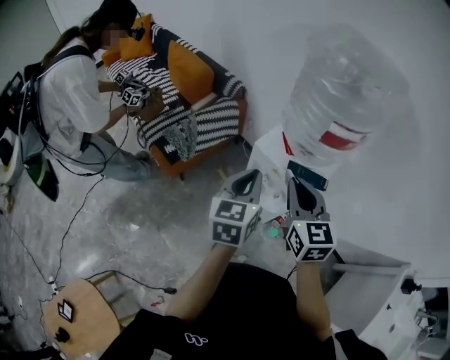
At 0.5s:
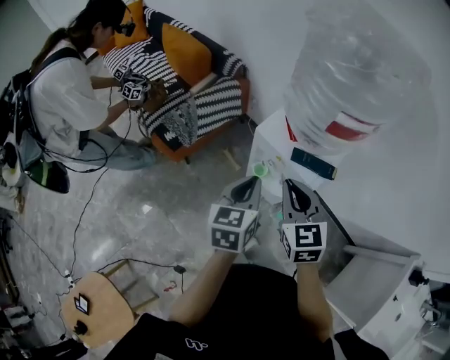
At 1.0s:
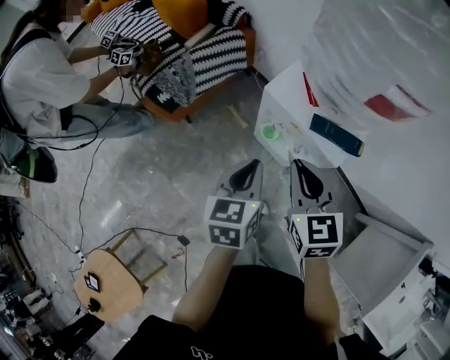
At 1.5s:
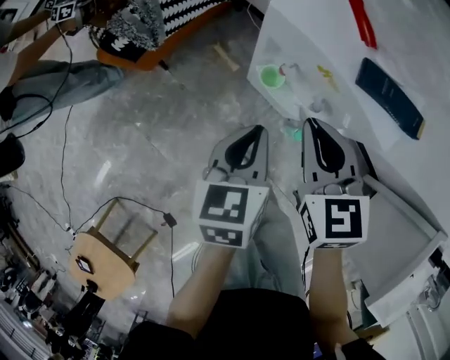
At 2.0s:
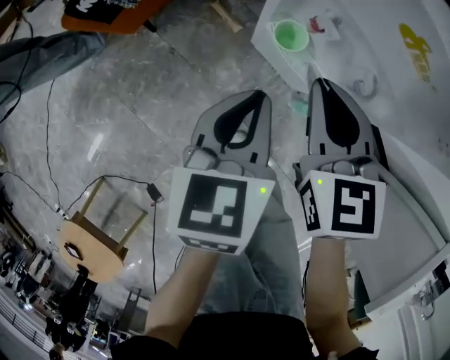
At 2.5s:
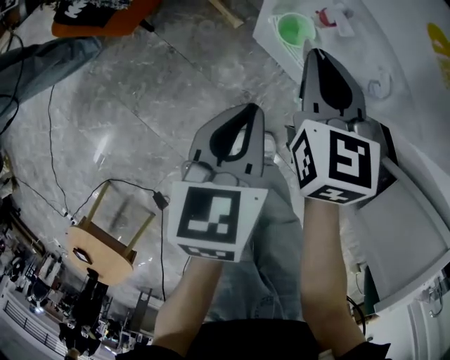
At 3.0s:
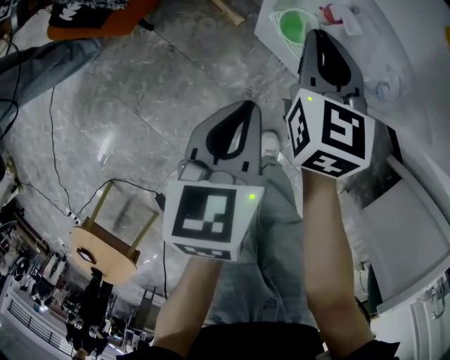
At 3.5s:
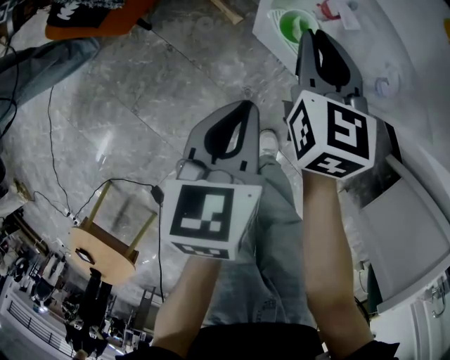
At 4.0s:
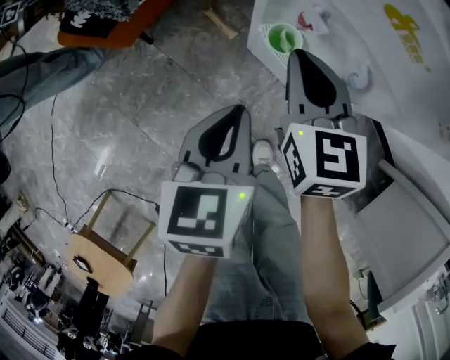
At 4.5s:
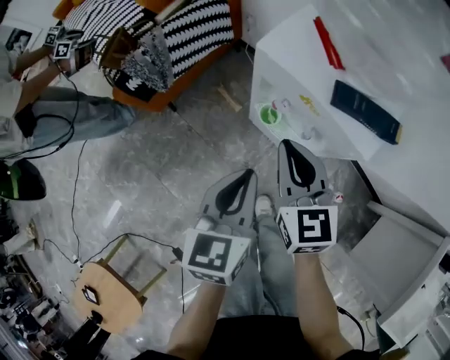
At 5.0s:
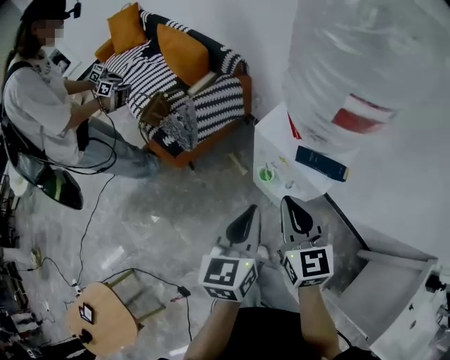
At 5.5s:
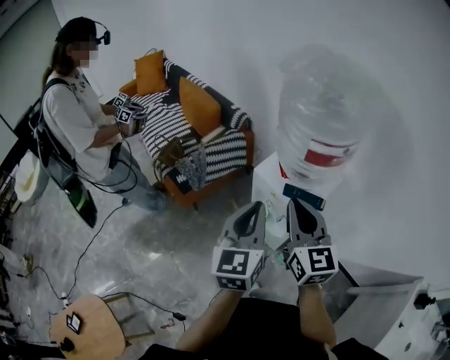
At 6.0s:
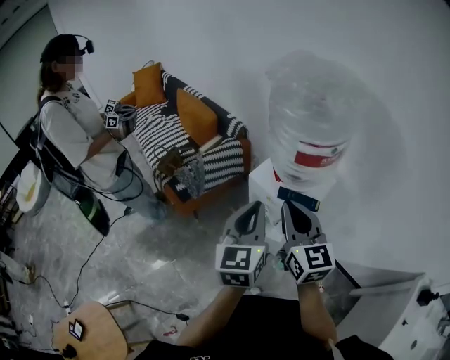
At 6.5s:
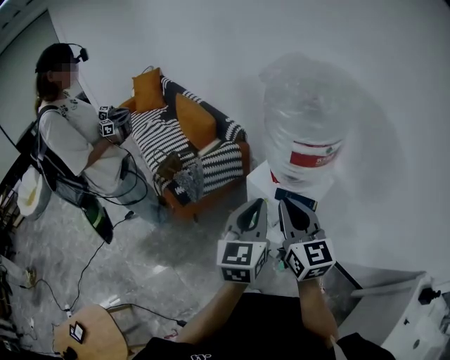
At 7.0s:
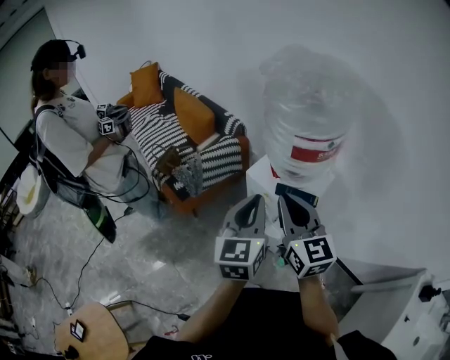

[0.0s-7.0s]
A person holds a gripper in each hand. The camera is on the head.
0.0s to 2.0s: The grippers both shift downward by roughly 35 cm. The left gripper changes its angle by about 20 degrees.
2.0s to 3.5s: The left gripper is displaced downward by about 5 cm; the right gripper goes some 10 cm downward and forward.
3.5s to 5.0s: The right gripper goes some 40 cm upward and backward, and swivels about 20 degrees. Meanwhile the left gripper travels upward by about 35 cm, and rotates about 30 degrees.
5.0s to 7.0s: The two grippers go some 15 cm upward.

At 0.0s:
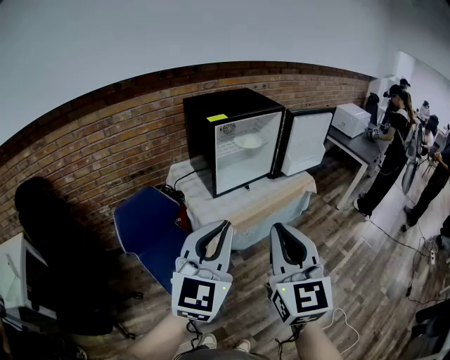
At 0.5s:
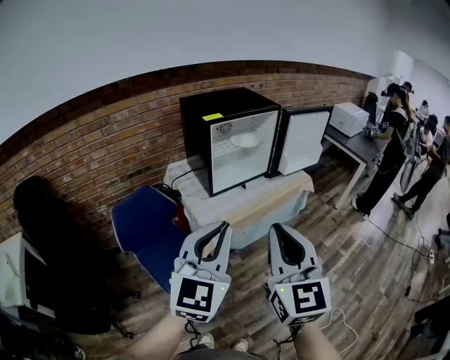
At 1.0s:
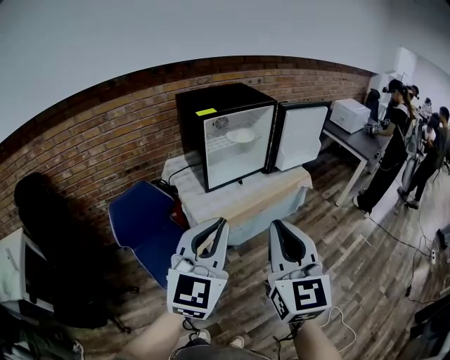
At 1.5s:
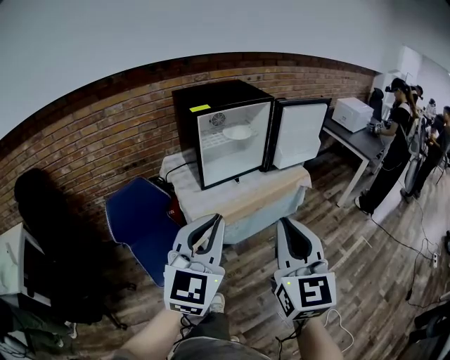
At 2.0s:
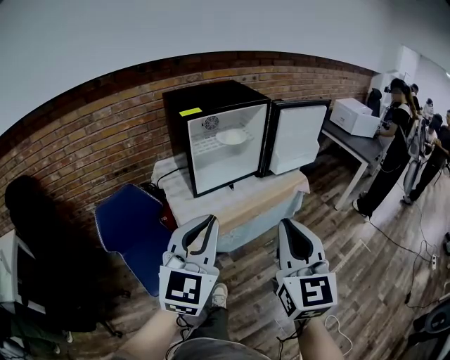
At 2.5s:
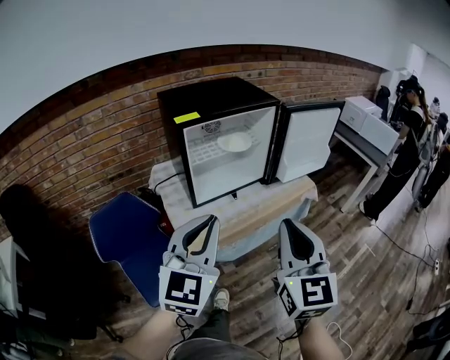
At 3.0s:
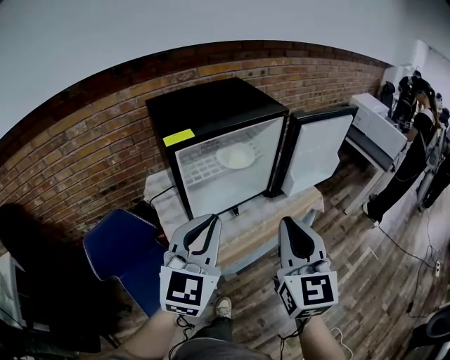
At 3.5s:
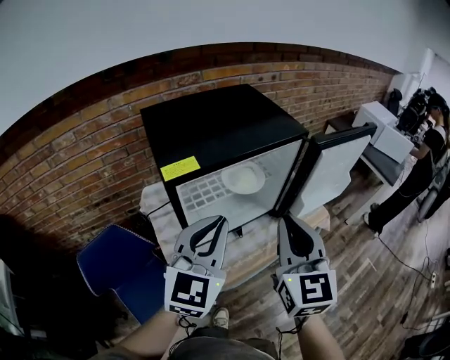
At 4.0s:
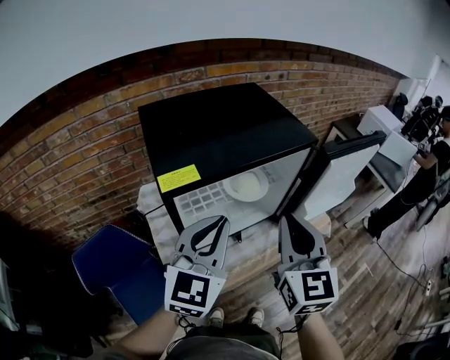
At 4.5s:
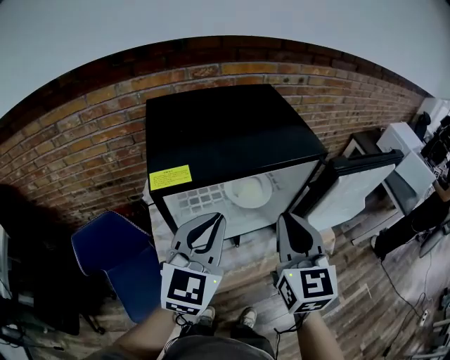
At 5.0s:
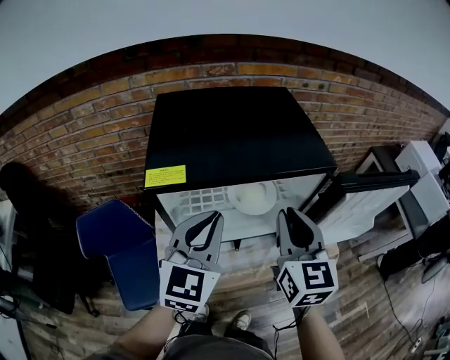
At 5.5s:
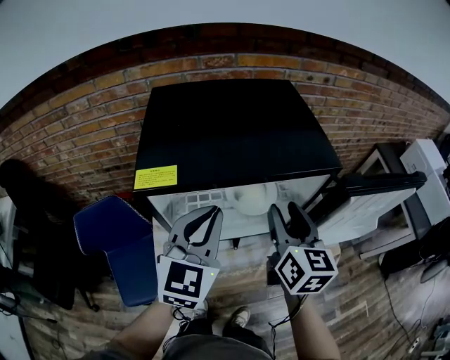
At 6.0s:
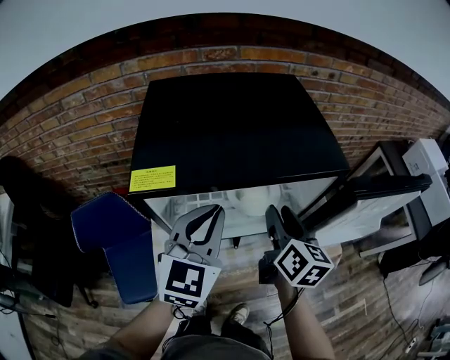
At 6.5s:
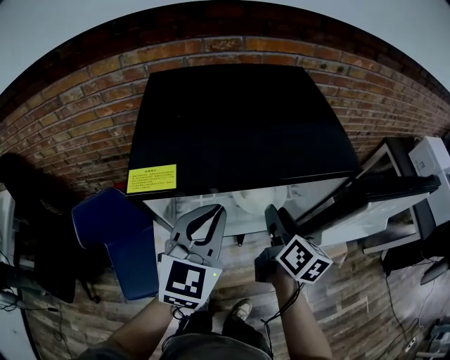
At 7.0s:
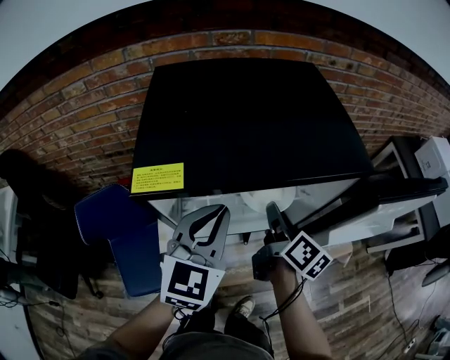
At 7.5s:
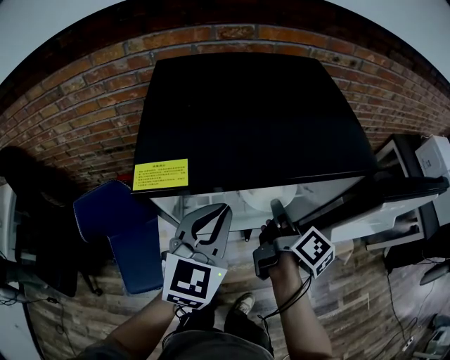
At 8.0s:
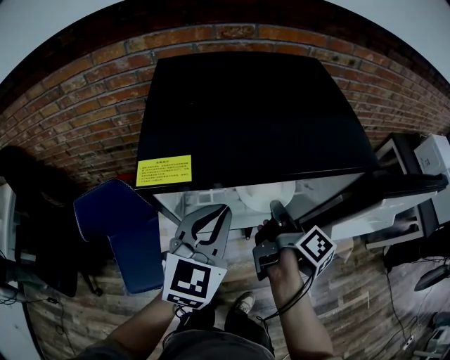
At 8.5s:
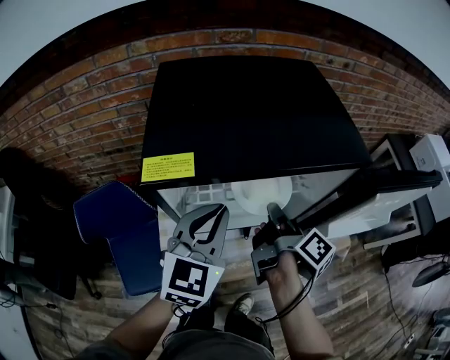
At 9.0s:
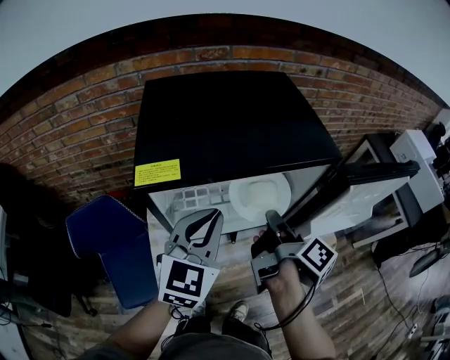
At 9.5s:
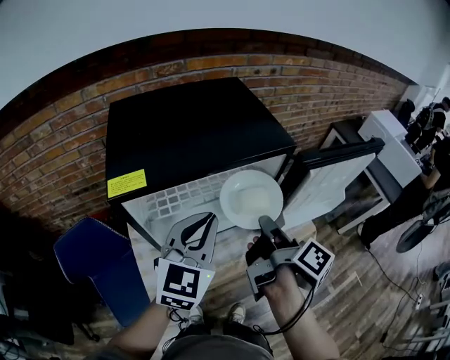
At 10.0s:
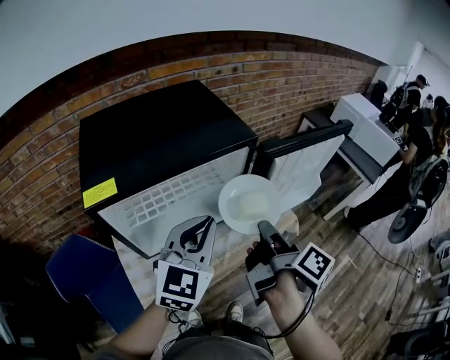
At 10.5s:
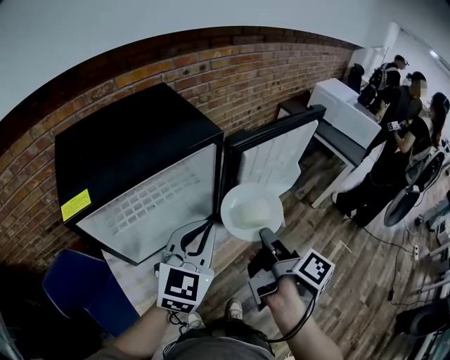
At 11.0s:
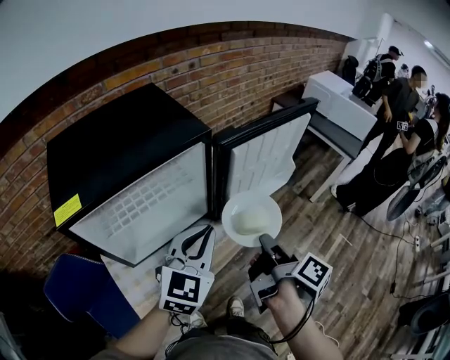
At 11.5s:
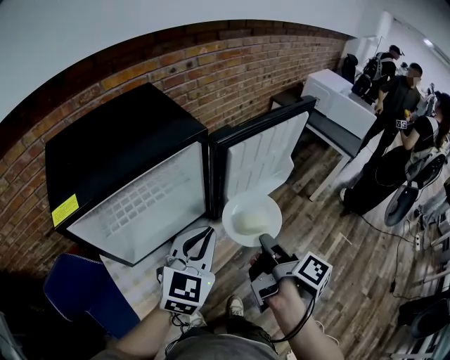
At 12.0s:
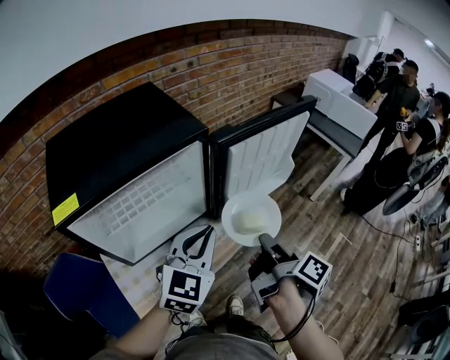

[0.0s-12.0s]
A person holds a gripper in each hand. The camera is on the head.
0.0s to 2.0s: The right gripper moves to the right and forward, about 15 cm. Meanwhile the left gripper goes approximately 10 cm forward and to the right.
2.0s to 4.0s: Both grippers move forward, roughly 40 cm.
4.0s to 6.0s: The right gripper heads forward and downward, covering about 20 cm, changes its angle by some 40 degrees, and opens up; the left gripper travels forward by roughly 10 cm.
6.0s to 8.0s: The right gripper shifts some 5 cm downward, rotates around the line of its fingers by roughly 50 degrees, clockwise from behind, and closes its fingers.
8.0s to 10.0s: The right gripper shifts some 20 cm to the right, backward and upward. Meanwhile the left gripper shifts about 15 cm to the right, and rotates approximately 20 degrees.
10.0s to 12.0s: The left gripper shifts approximately 10 cm to the right; the right gripper heads to the right and downward, covering roughly 10 cm.

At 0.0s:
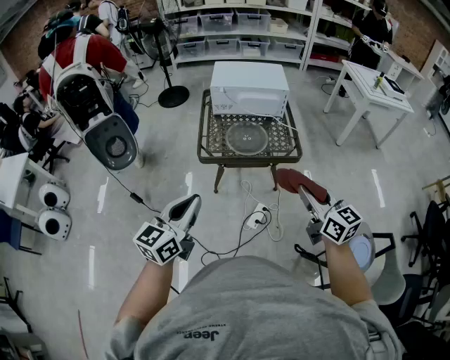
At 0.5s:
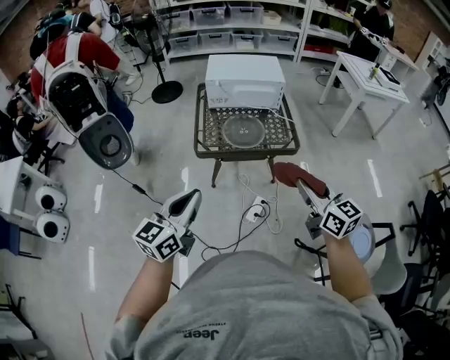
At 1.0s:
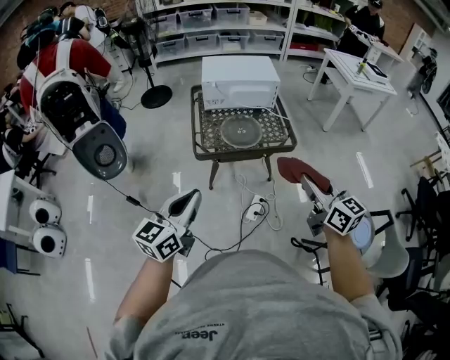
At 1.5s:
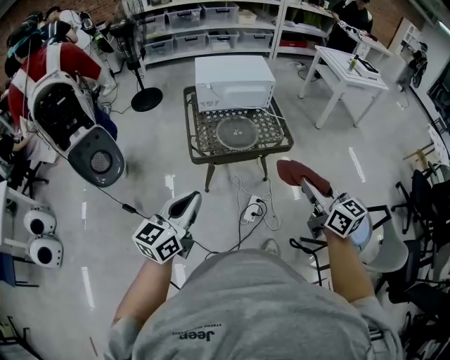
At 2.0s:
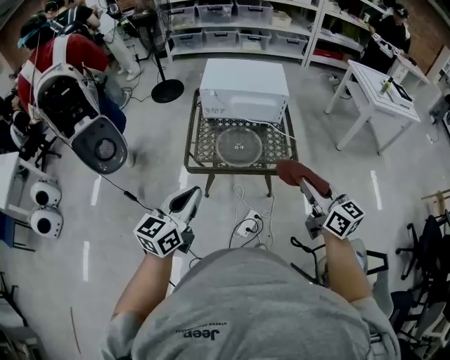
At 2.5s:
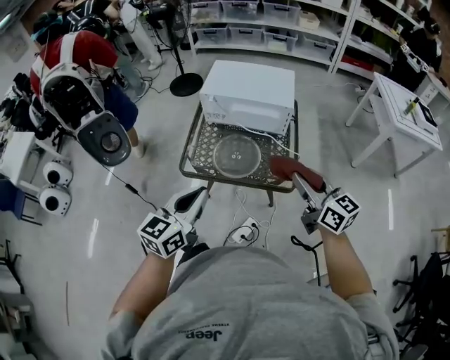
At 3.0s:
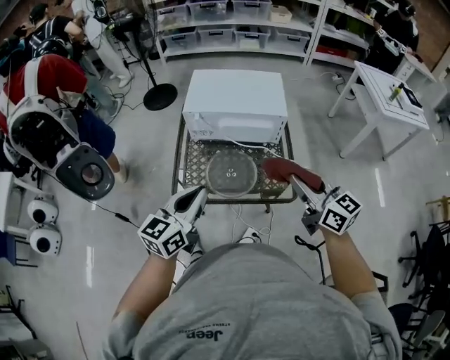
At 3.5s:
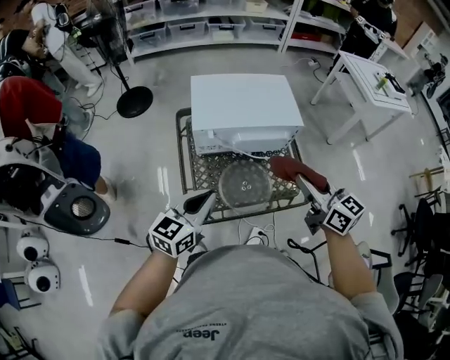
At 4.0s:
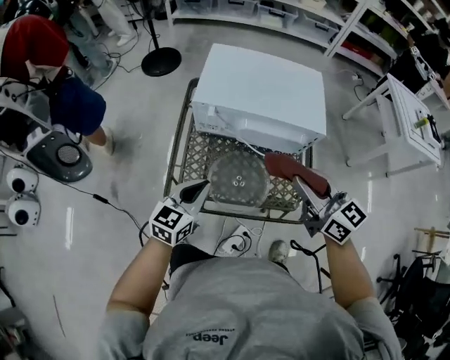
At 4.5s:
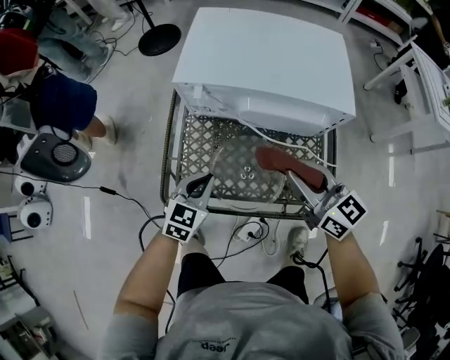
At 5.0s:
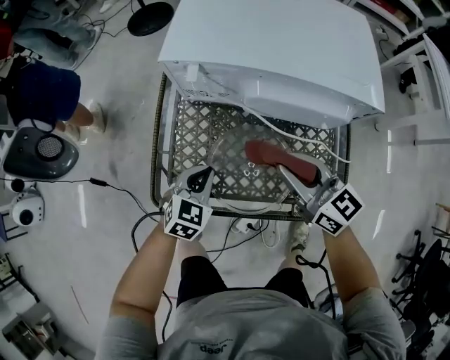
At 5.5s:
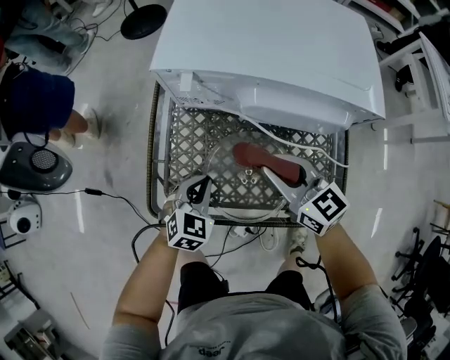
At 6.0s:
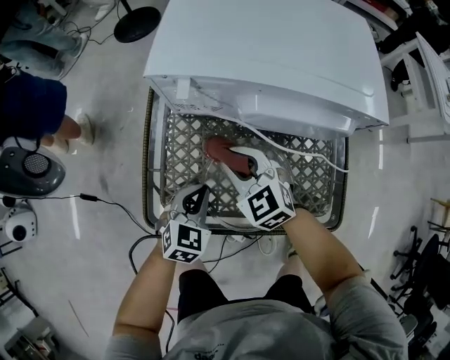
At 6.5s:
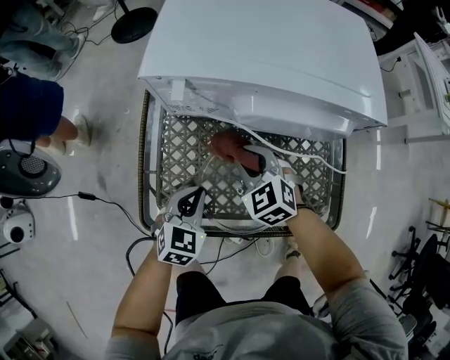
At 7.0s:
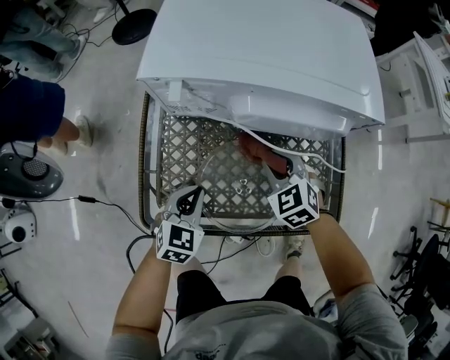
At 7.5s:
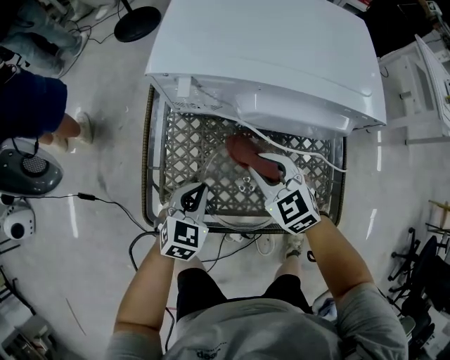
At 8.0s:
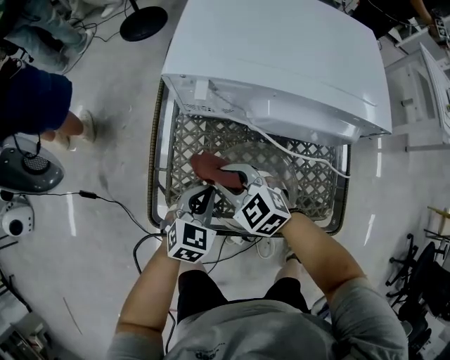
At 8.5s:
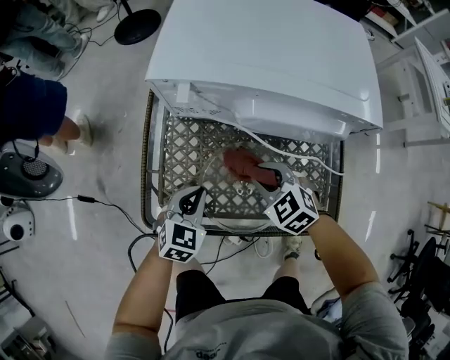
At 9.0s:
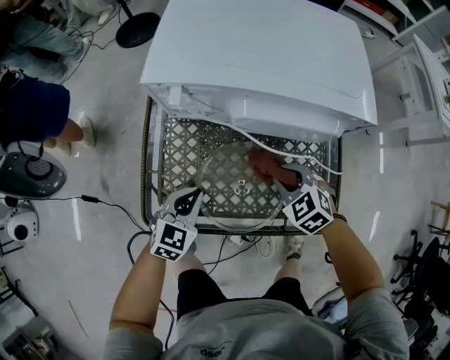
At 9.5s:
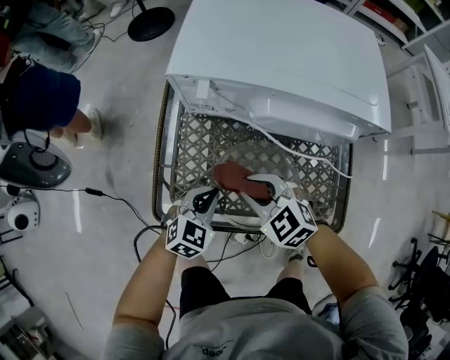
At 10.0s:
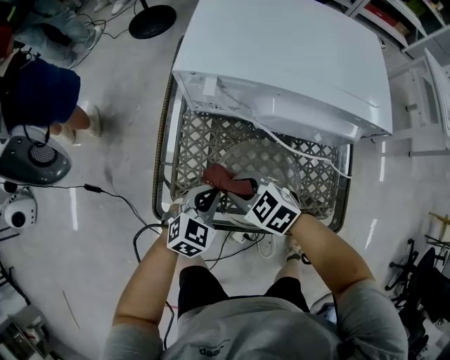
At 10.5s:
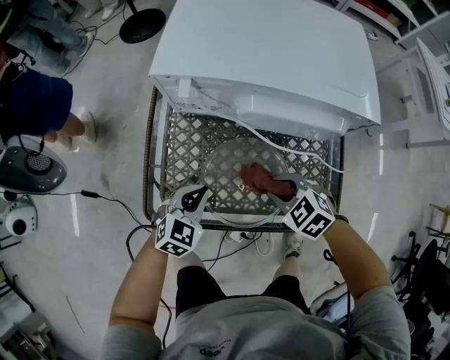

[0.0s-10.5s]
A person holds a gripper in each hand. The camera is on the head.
0.0s to 2.0s: Both grippers travel together forward, roughly 15 cm.
2.0s to 4.0s: The right gripper goes roughly 30 cm forward; the left gripper moves forward and downward, about 35 cm.
4.0s to 6.5s: The left gripper shifts some 20 cm downward, and rotates approximately 30 degrees; the right gripper travels downward by roughly 35 cm, and tips its fingers downward by some 30 degrees.
6.5s to 8.5s: The right gripper swings left and right, roughly 15 cm each way, with 2 reversals.
8.5s to 10.5s: The right gripper goes left and right, roughly 20 cm each way, reversing 2 times.
